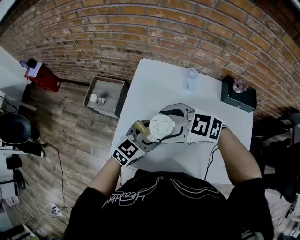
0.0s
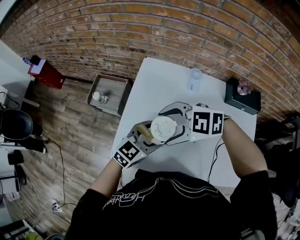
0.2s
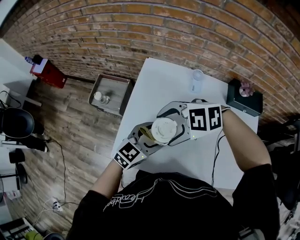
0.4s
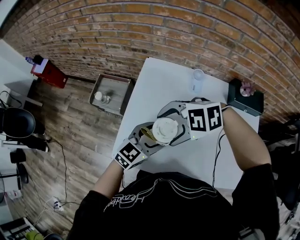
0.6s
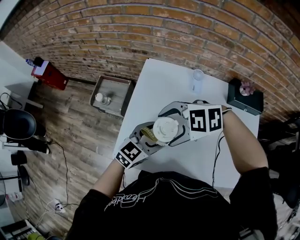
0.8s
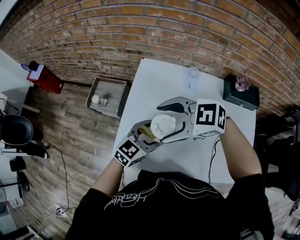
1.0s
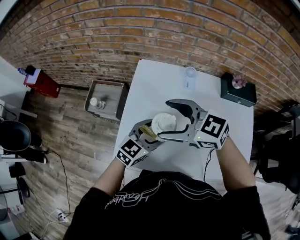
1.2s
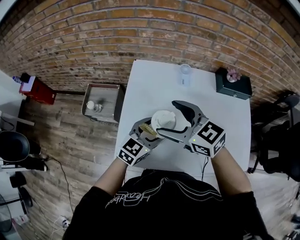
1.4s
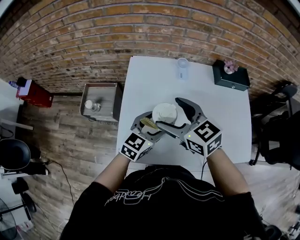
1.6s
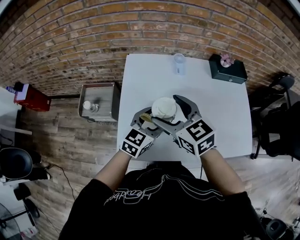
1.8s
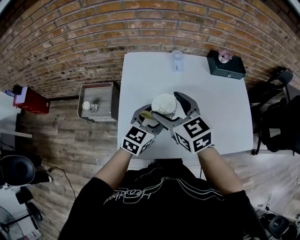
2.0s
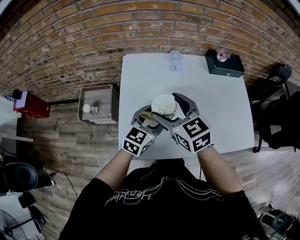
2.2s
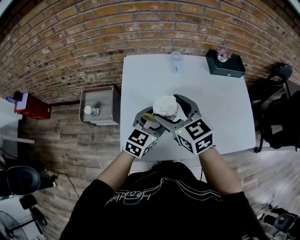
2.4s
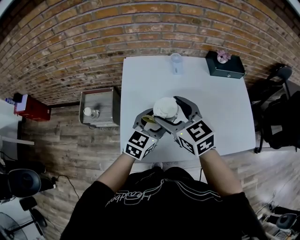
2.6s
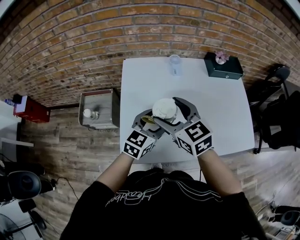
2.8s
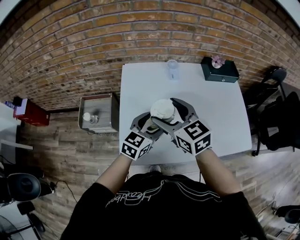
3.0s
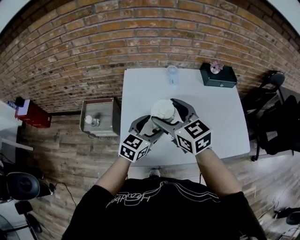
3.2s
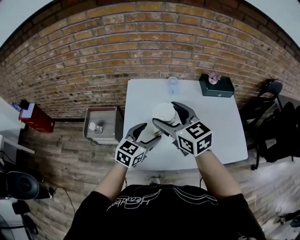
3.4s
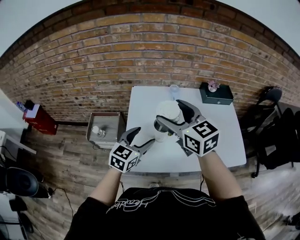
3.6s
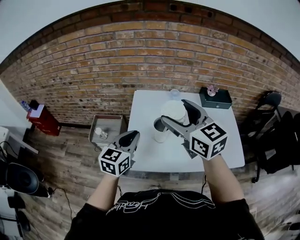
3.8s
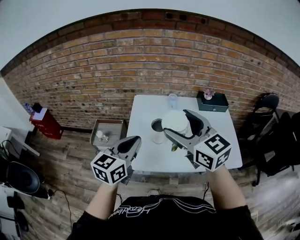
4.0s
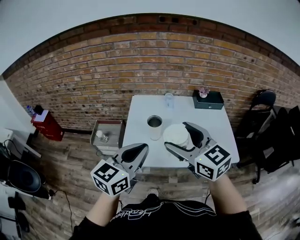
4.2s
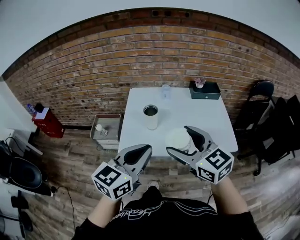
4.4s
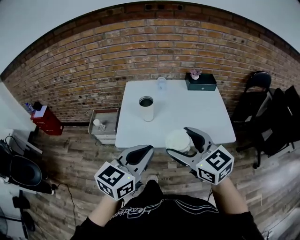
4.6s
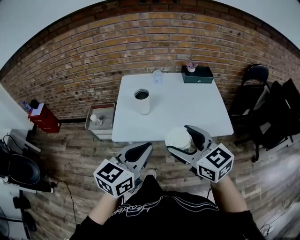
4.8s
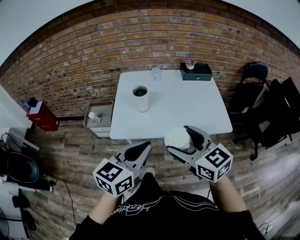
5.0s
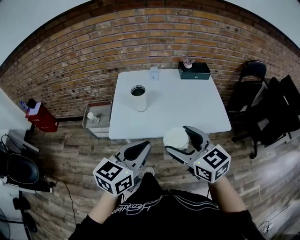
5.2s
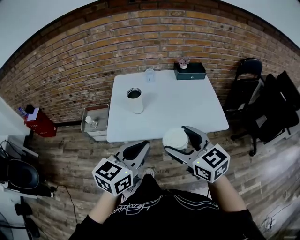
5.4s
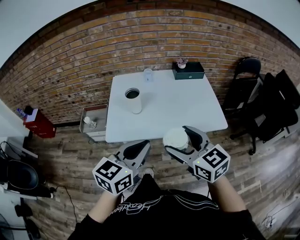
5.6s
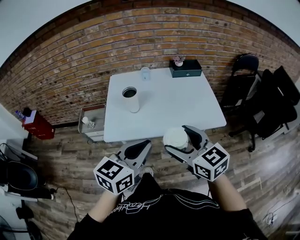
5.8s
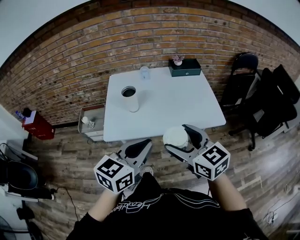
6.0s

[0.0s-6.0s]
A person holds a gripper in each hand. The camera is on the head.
0.0s to 1.6s: The right gripper turns by approximately 50 degrees.
1.6s to 3.0s: The grippers make only small movements.
3.0s to 4.4s: The right gripper travels backward, upward and to the right by about 30 cm, while the left gripper is displaced backward and upward by roughly 35 cm, and closes.
4.4s to 6.0s: The left gripper goes roughly 10 cm to the right and downward; the right gripper travels to the right, backward and downward by about 10 cm.

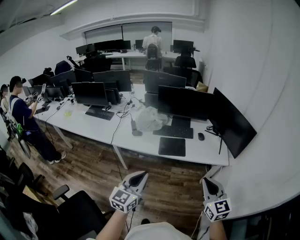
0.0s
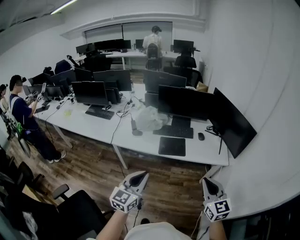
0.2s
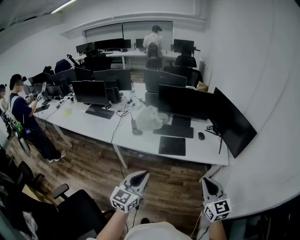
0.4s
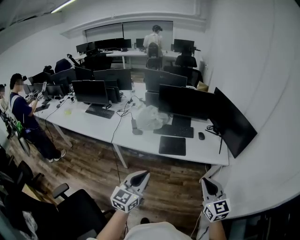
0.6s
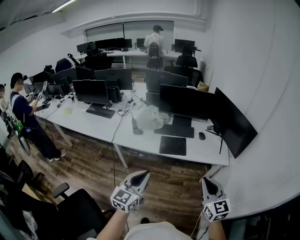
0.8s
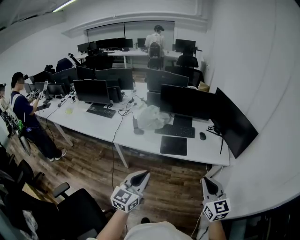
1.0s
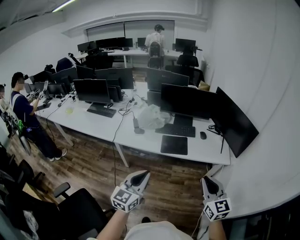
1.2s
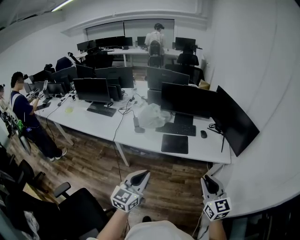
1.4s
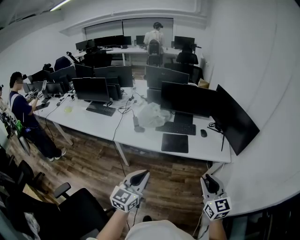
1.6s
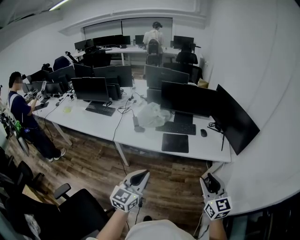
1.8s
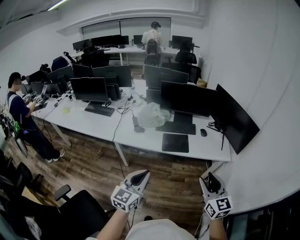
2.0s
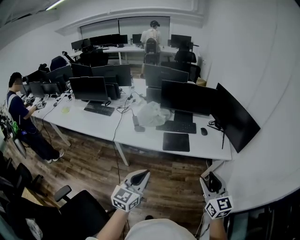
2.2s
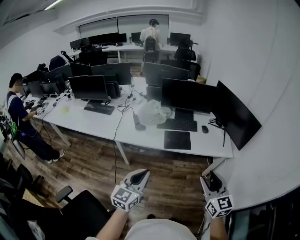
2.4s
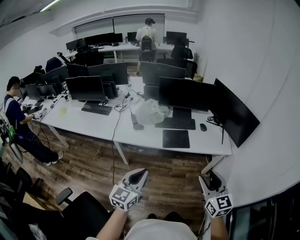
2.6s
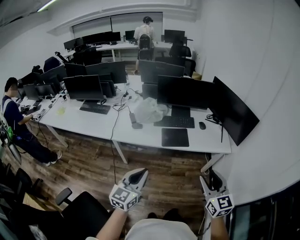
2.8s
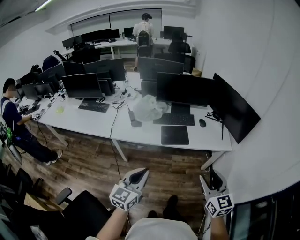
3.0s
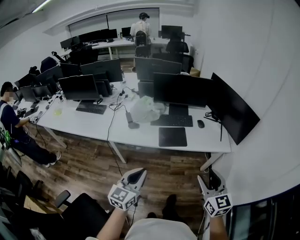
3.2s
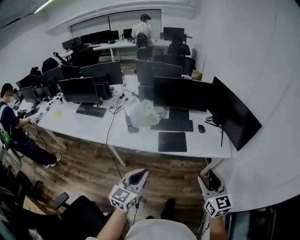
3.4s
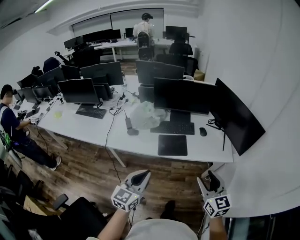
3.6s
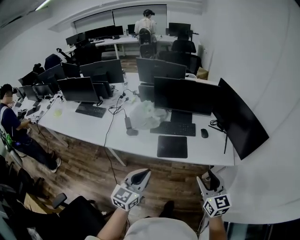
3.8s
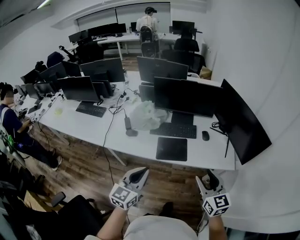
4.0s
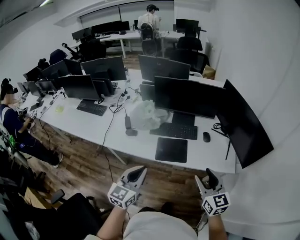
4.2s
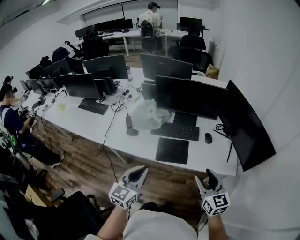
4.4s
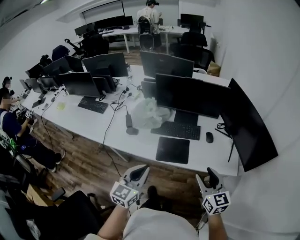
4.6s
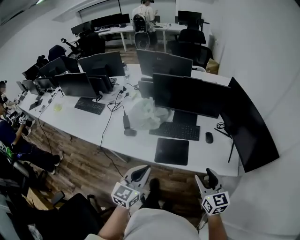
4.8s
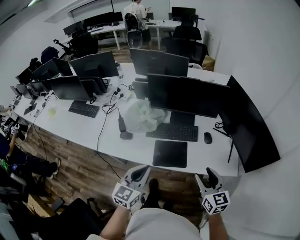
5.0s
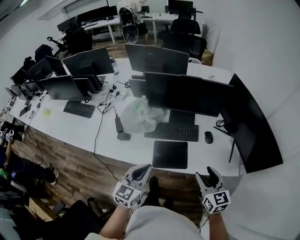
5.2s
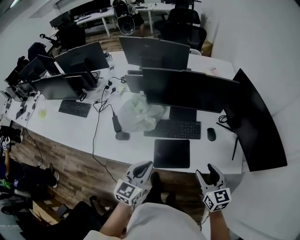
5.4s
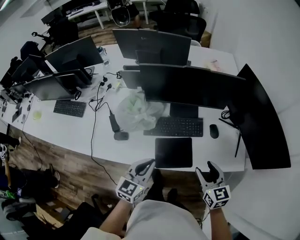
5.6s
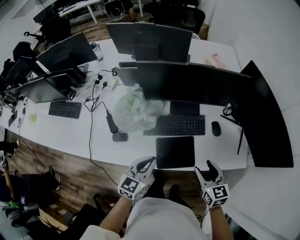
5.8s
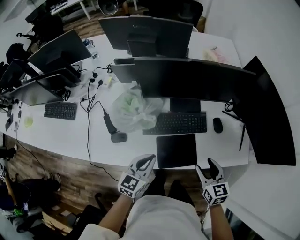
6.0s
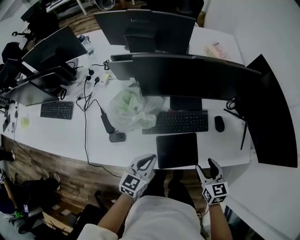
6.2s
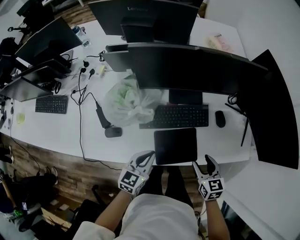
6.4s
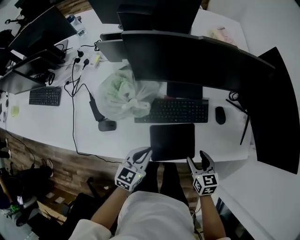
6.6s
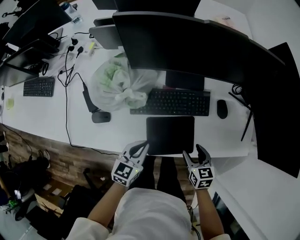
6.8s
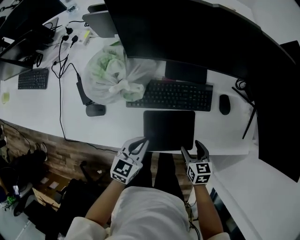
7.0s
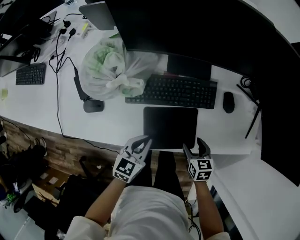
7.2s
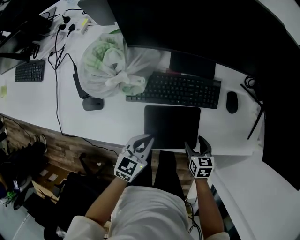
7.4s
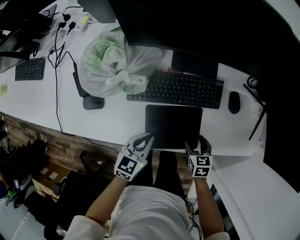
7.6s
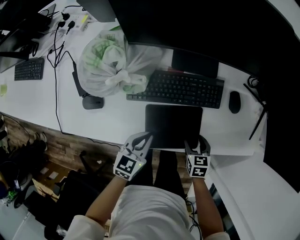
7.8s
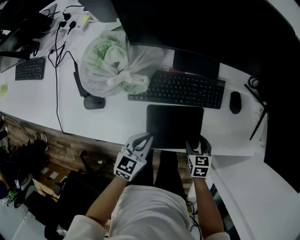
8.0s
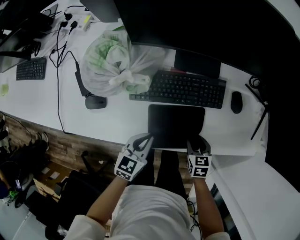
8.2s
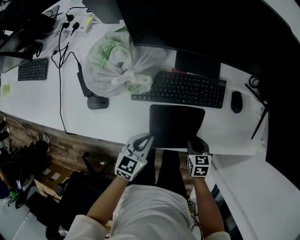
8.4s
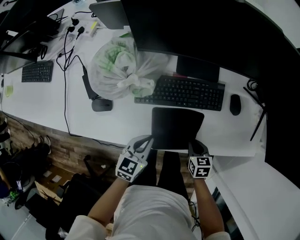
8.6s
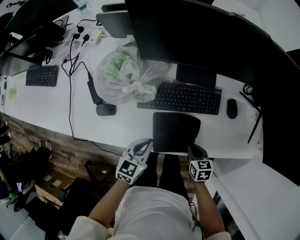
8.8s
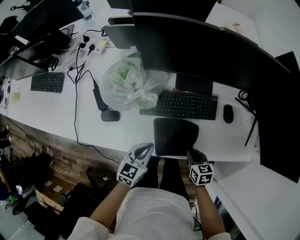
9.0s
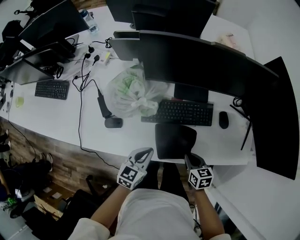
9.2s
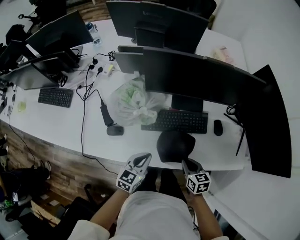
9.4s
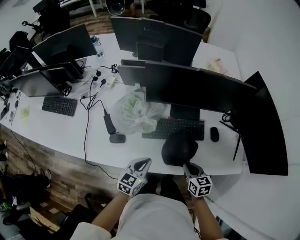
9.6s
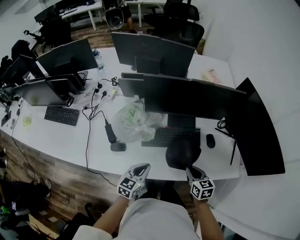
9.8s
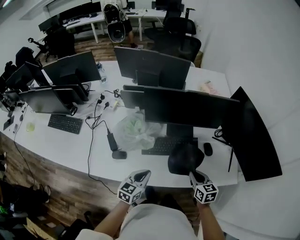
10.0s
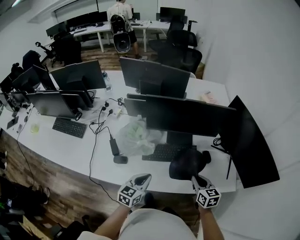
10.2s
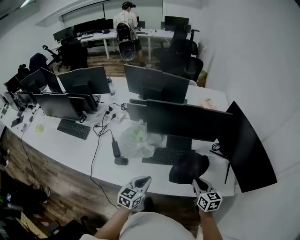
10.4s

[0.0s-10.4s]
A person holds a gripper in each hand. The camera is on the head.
0.0s to 1.4s: The grippers stay close to where they were, moving slightly.
1.4s to 3.0s: The right gripper opens; the left gripper changes place by approximately 5 cm.
3.0s to 4.4s: Both grippers travel together forward, approximately 25 cm.
4.4s to 6.0s: The grippers both shift forward and downward by roughly 30 cm. The left gripper changes its angle by approximately 20 degrees. Meanwhile the right gripper changes its angle by roughly 20 degrees.
6.0s to 7.4s: The grippers both shift downward by approximately 25 cm. The right gripper rotates some 30 degrees.
7.4s to 9.0s: The left gripper heads upward, covering approximately 5 cm, while the right gripper heads upward and to the left, covering approximately 10 cm, and closes up.
9.0s to 10.4s: The two grippers go about 20 cm upward. The right gripper changes its angle by roughly 30 degrees.

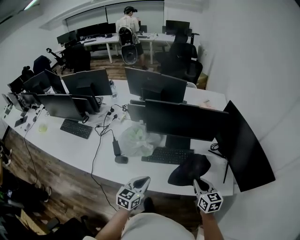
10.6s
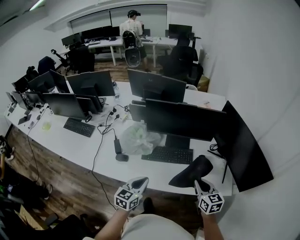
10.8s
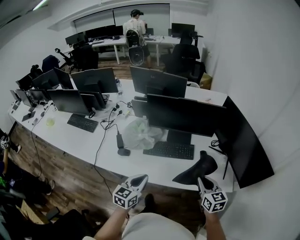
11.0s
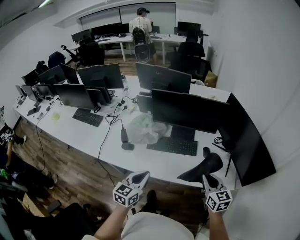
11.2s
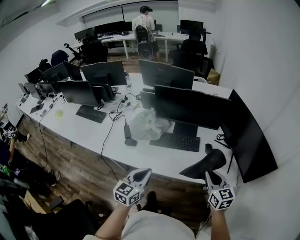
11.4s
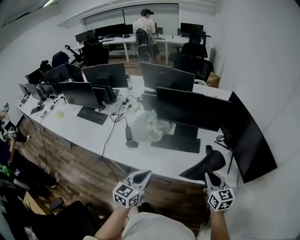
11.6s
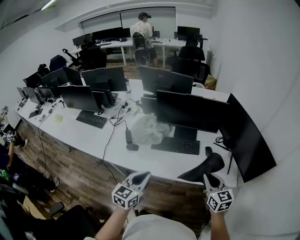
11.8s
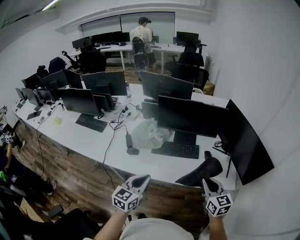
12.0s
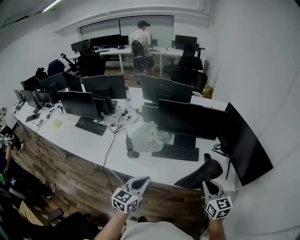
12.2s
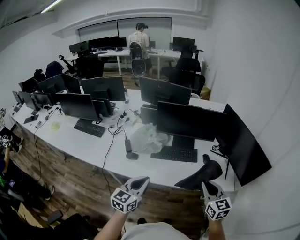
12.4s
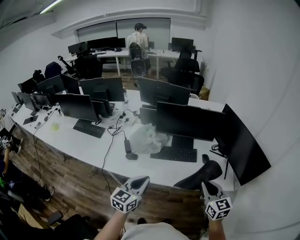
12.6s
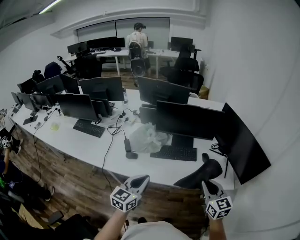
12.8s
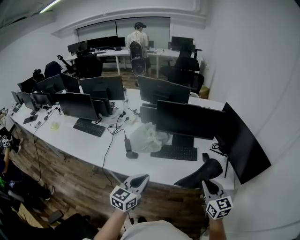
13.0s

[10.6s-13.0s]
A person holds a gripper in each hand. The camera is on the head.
10.6s to 11.8s: The two grippers go roughly 15 cm backward and upward.
11.8s to 13.0s: The right gripper changes place by about 10 cm. Meanwhile the left gripper changes place by roughly 5 cm.

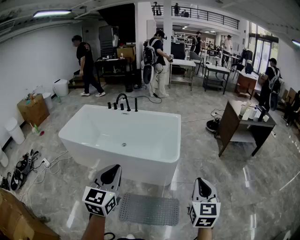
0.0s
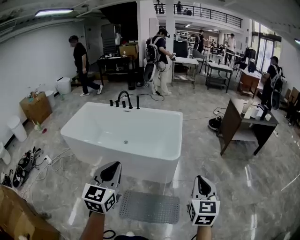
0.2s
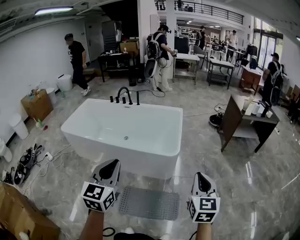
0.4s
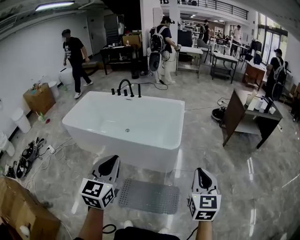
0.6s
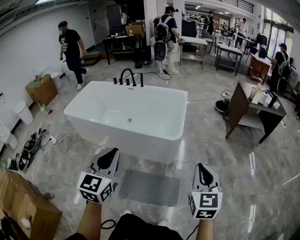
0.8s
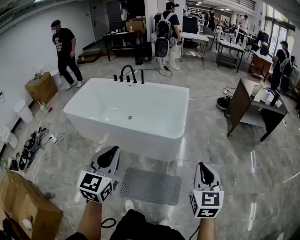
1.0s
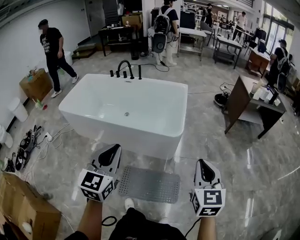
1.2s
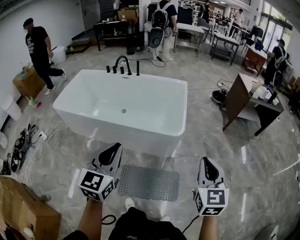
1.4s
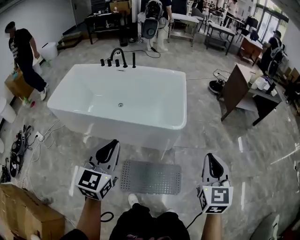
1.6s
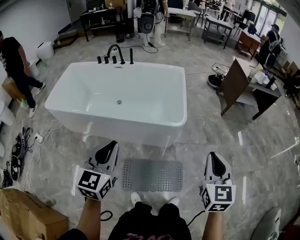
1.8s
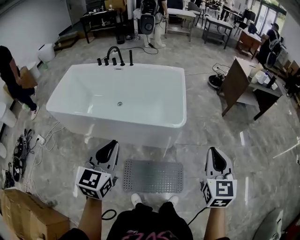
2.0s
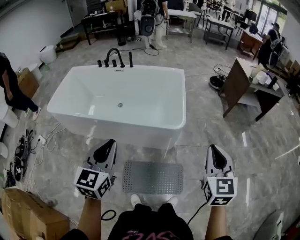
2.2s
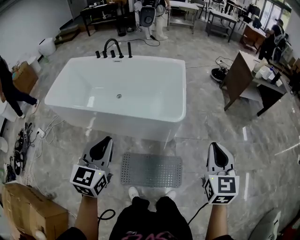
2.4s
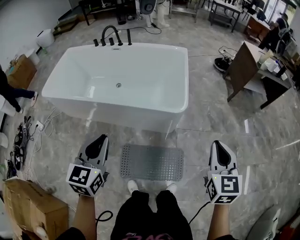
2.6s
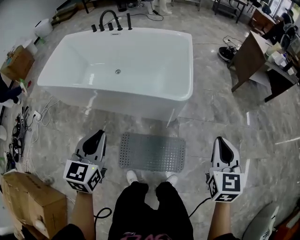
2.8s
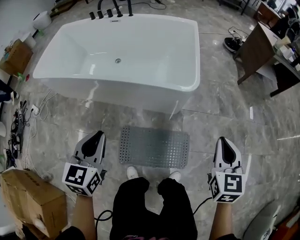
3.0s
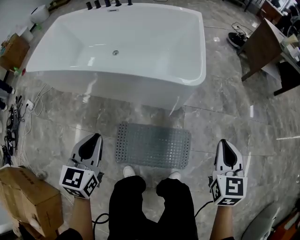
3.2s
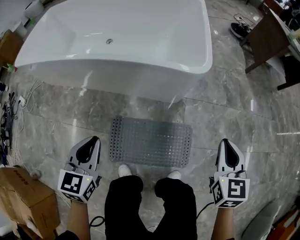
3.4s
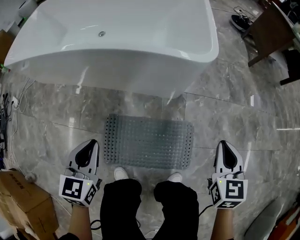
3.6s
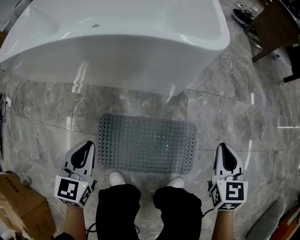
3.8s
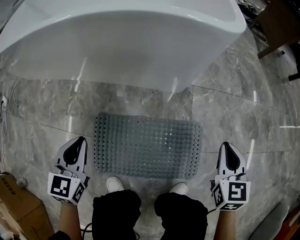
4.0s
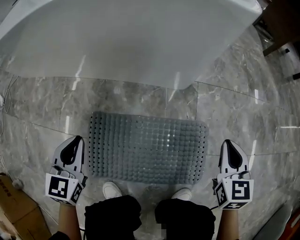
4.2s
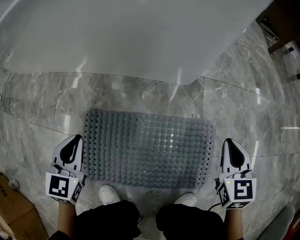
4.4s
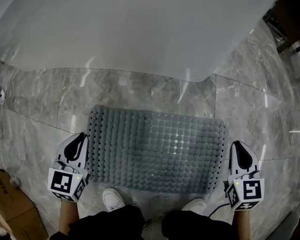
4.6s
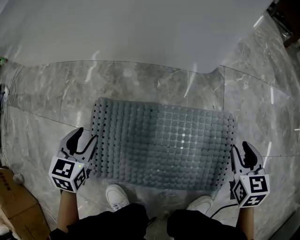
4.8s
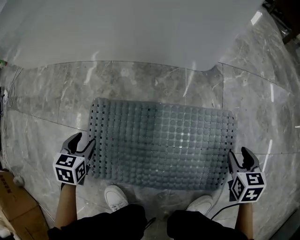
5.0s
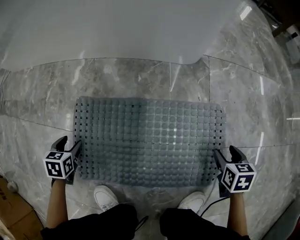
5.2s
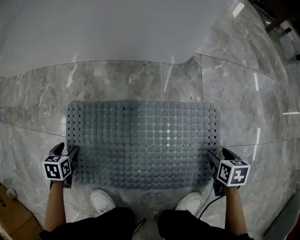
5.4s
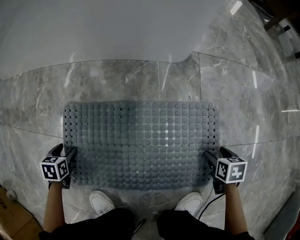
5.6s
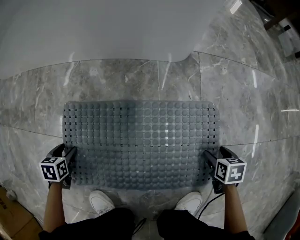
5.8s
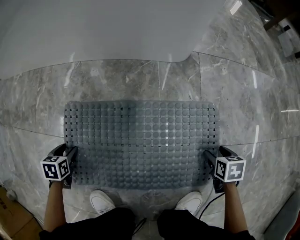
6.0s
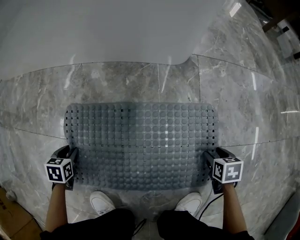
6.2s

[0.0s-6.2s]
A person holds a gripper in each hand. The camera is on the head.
0.0s to 1.6s: The right gripper is displaced forward by roughly 5 cm. The left gripper is displaced forward, downward and to the left by approximately 15 cm.
1.6s to 3.2s: The grippers both shift downward by roughly 30 cm. The left gripper rotates about 20 degrees.
3.2s to 4.6s: The grippers both shift downward by roughly 50 cm.
4.6s to 6.2s: The two grippers go about 20 cm downward. The right gripper points its fingers some 40 degrees further downward, and opens its fingers. The left gripper points its fingers about 30 degrees further downward, and opens its fingers.
